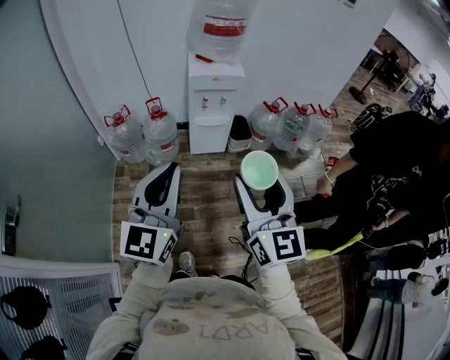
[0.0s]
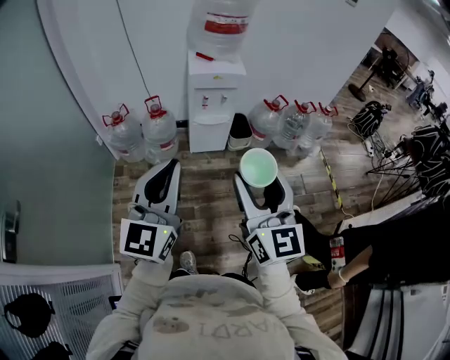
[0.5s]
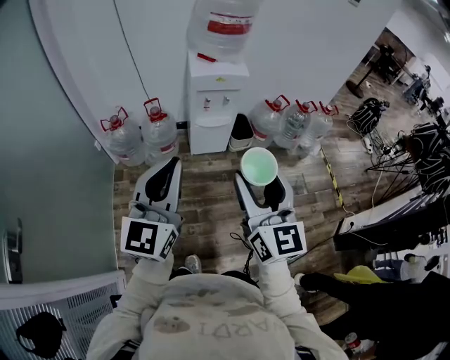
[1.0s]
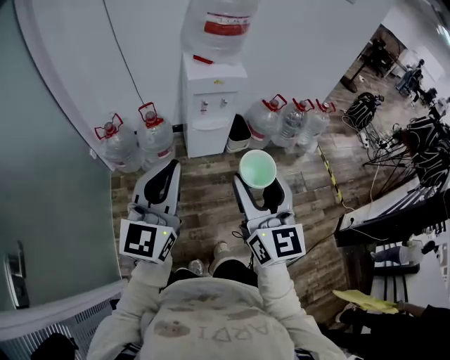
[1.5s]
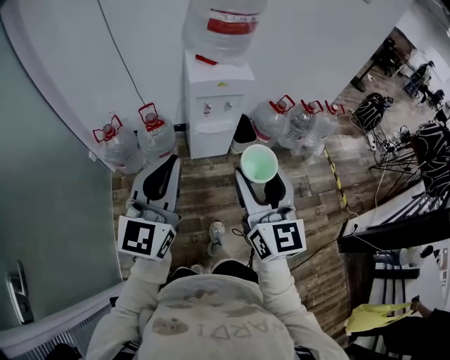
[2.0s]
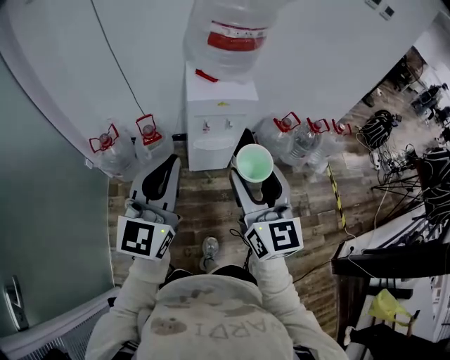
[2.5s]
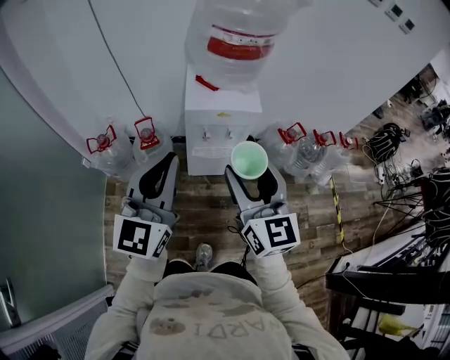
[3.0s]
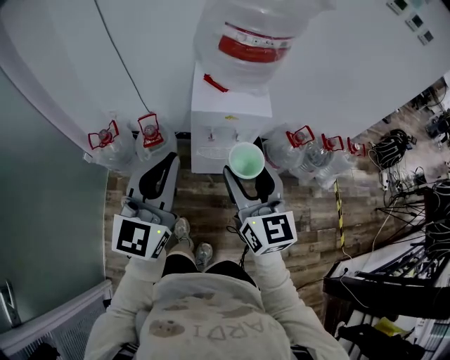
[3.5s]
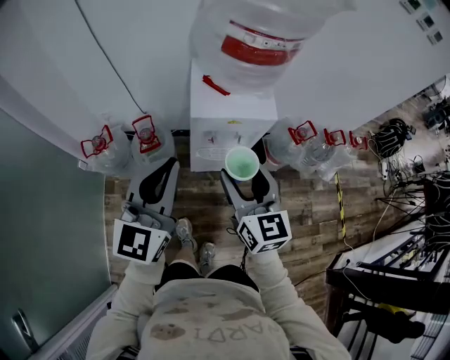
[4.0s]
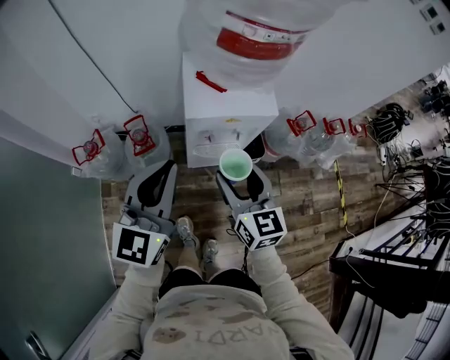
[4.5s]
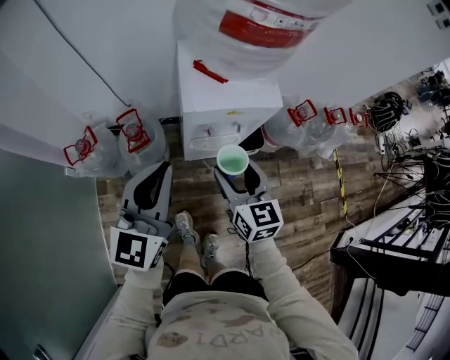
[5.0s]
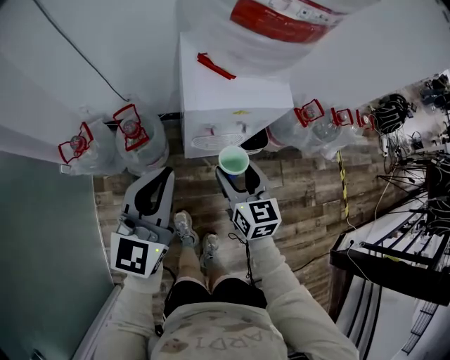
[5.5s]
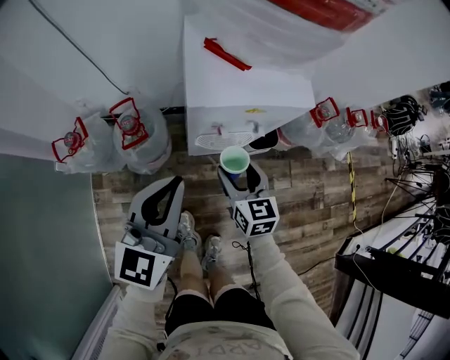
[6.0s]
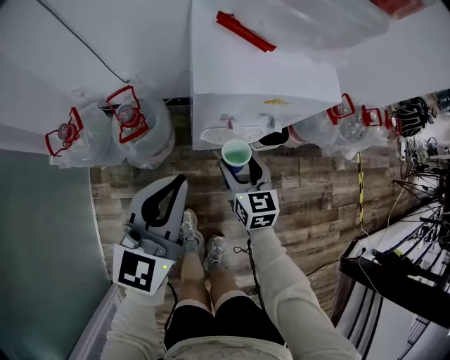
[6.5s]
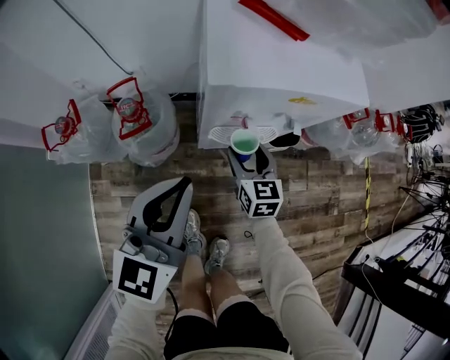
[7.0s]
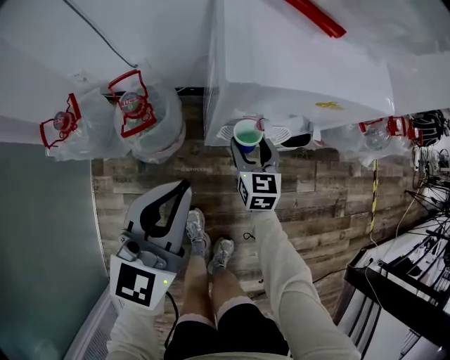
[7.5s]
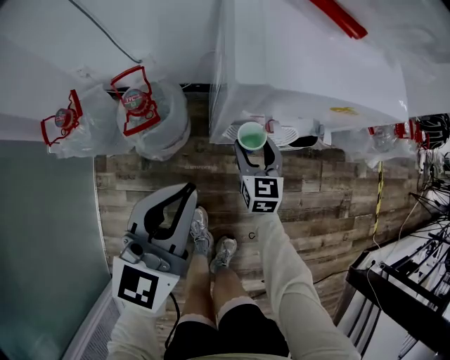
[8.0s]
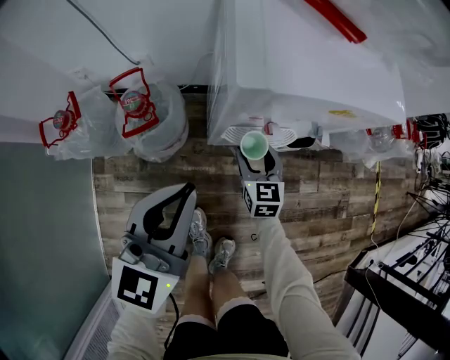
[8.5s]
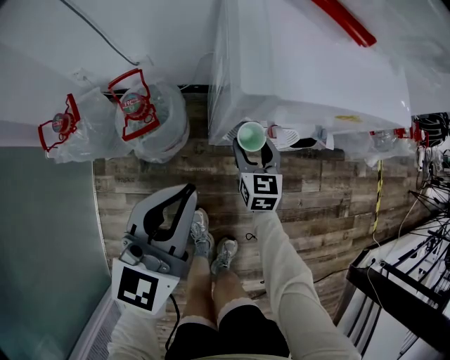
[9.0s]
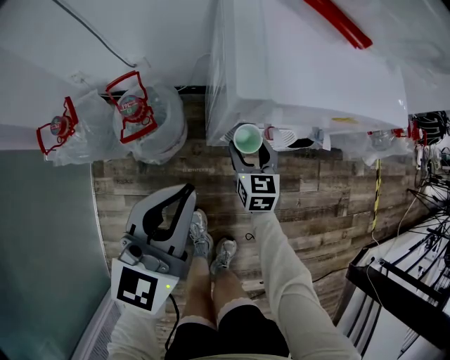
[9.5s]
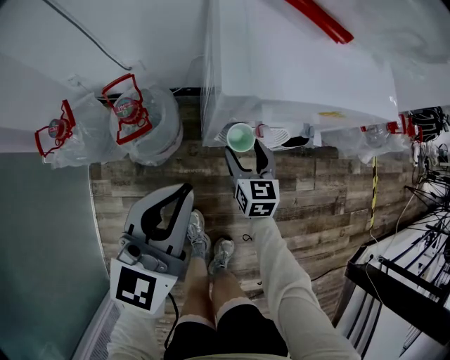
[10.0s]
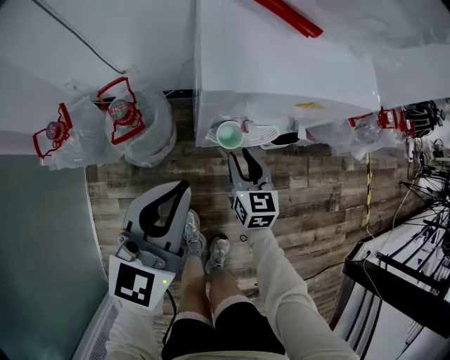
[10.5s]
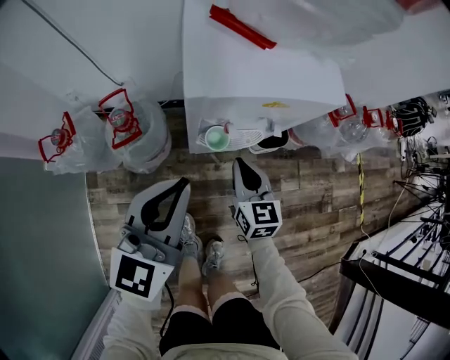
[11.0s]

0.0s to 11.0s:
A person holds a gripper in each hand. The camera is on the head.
0.0s to 2.0s: Both grippers travel together forward, some 20 cm.
2.0s to 3.5s: Both grippers move forward, some 25 cm.
3.5s to 5.5s: The grippers both shift downward and forward by roughly 25 cm. The right gripper turns by approximately 20 degrees.
5.5s to 7.5s: The right gripper goes some 30 cm downward and forward; the left gripper heads downward, covering roughly 20 cm.
7.5s to 9.0s: There are only small adjustments of the grippers.
9.0s to 11.0s: The left gripper heads upward, covering roughly 5 cm, while the right gripper heads upward, backward and to the right, covering about 15 cm, and closes.

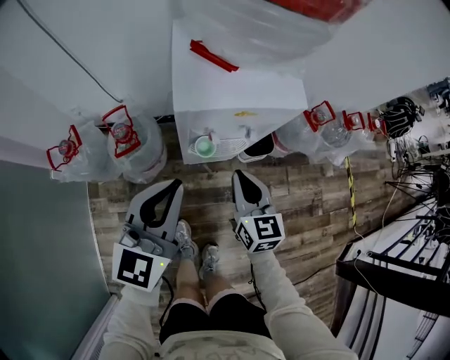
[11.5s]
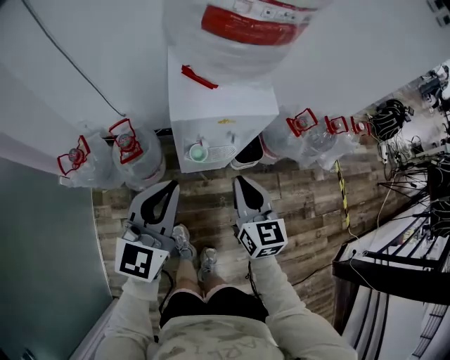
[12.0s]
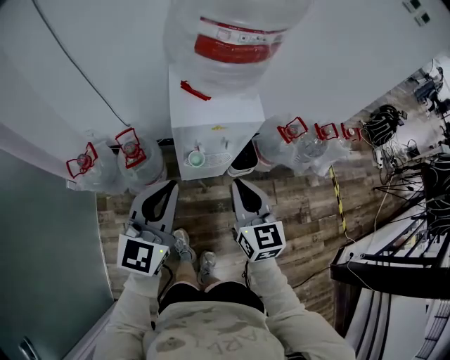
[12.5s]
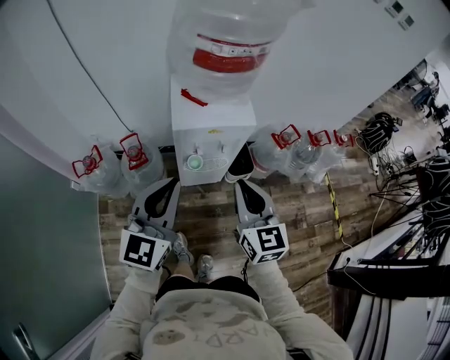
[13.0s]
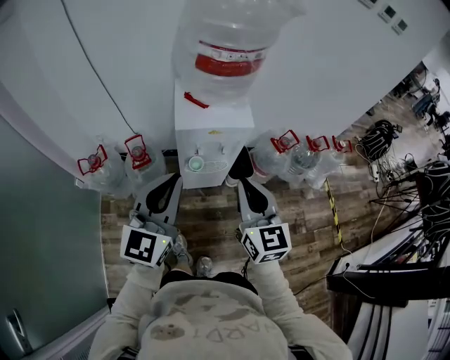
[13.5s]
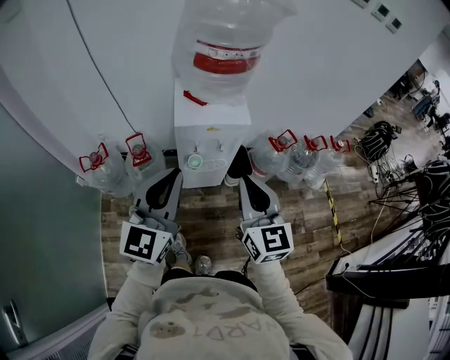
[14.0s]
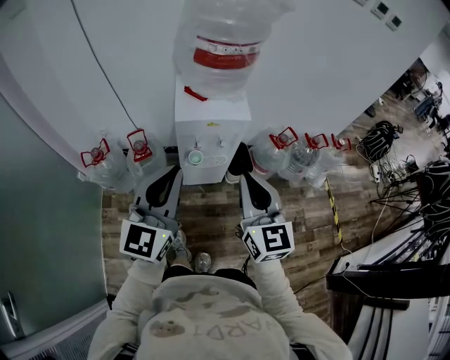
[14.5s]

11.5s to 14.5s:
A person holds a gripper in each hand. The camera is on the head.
11.5s to 13.0s: Both grippers travel together upward and backward, roughly 25 cm.
13.0s to 14.5s: The left gripper is displaced backward and upward by some 10 cm; the right gripper goes roughly 10 cm upward and backward.

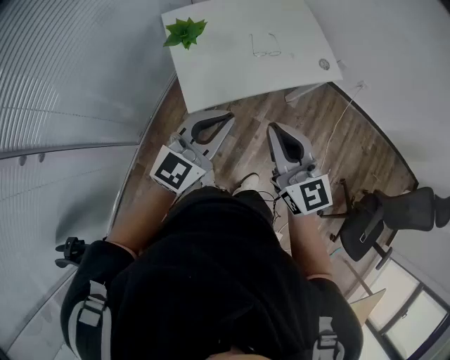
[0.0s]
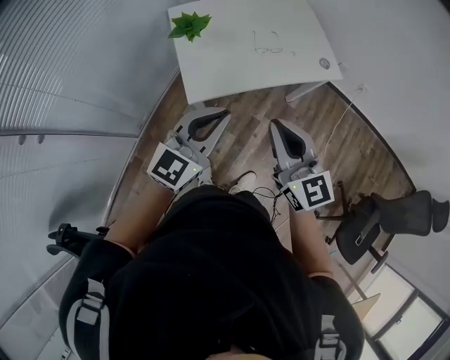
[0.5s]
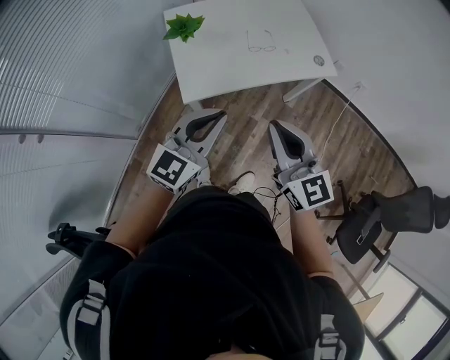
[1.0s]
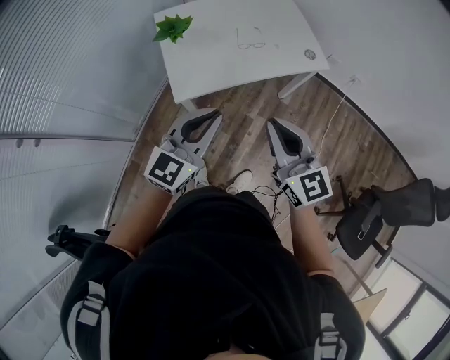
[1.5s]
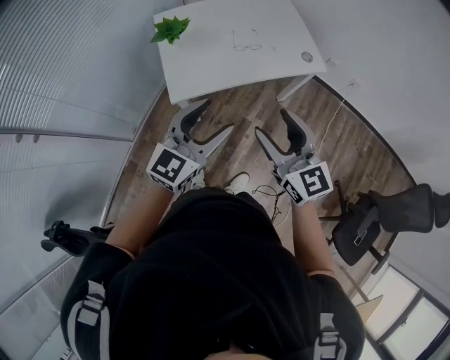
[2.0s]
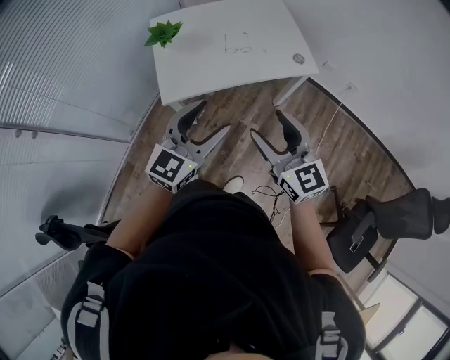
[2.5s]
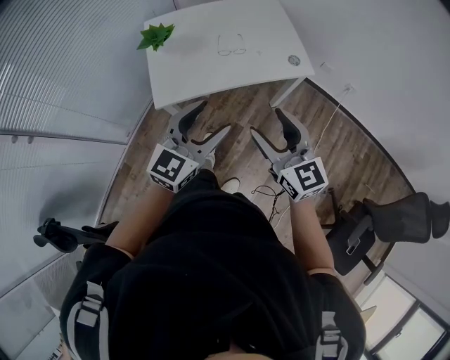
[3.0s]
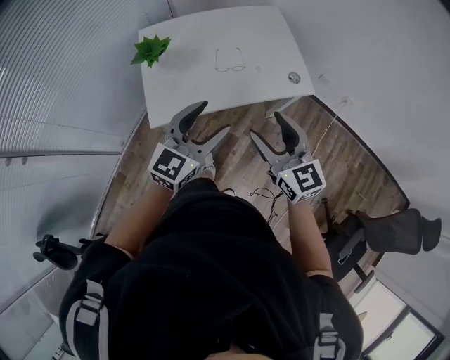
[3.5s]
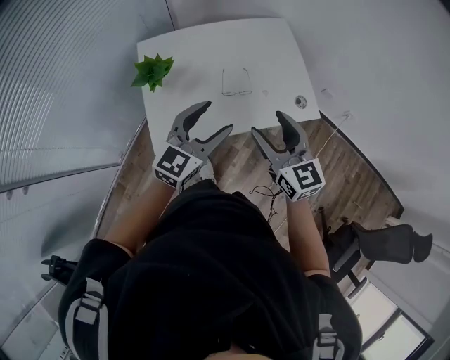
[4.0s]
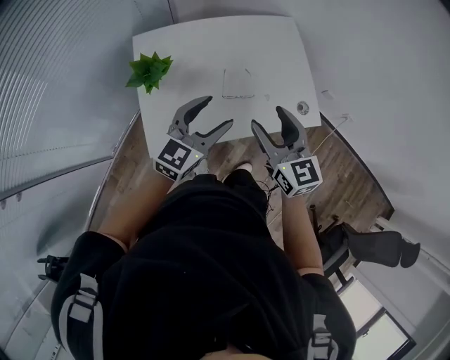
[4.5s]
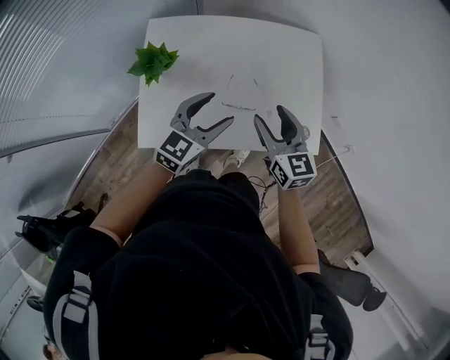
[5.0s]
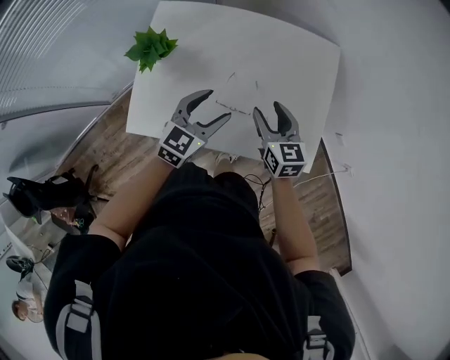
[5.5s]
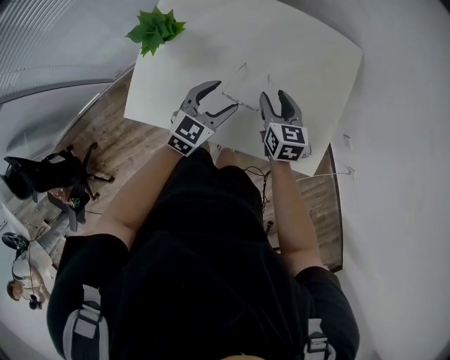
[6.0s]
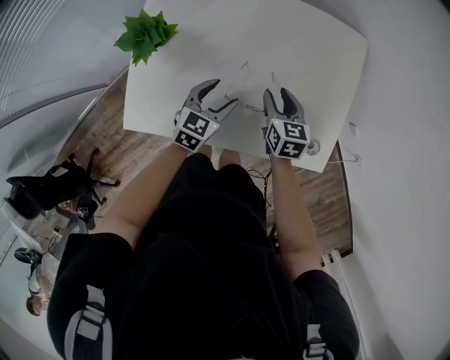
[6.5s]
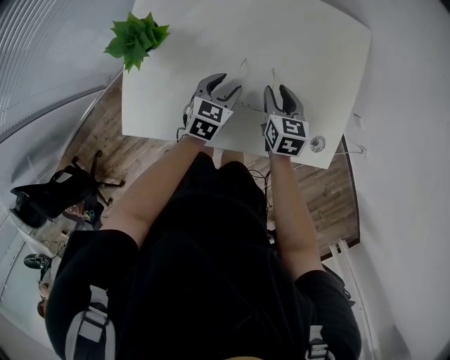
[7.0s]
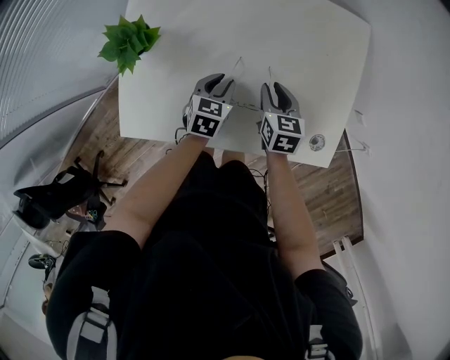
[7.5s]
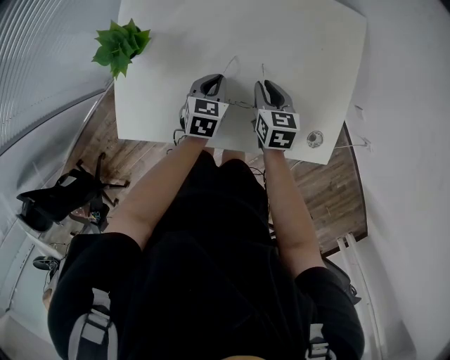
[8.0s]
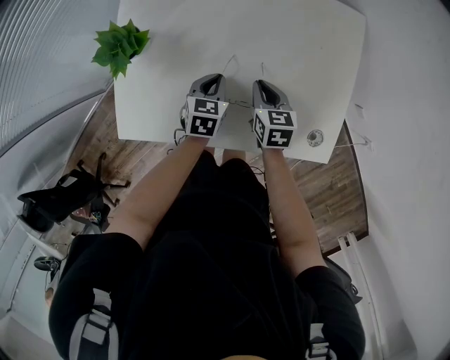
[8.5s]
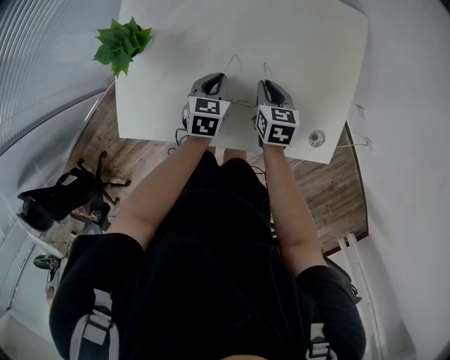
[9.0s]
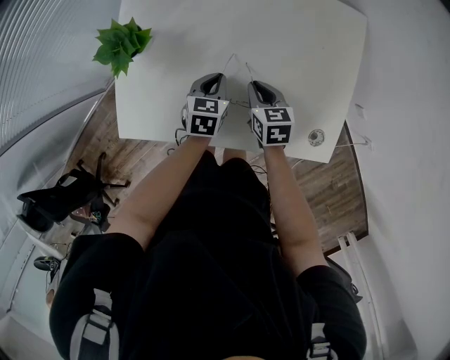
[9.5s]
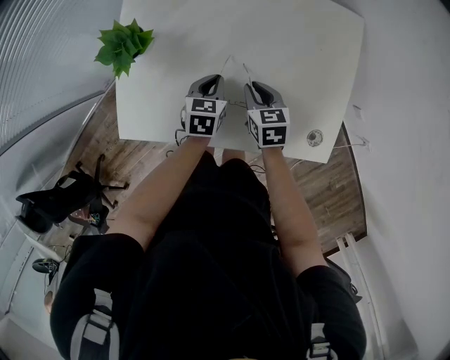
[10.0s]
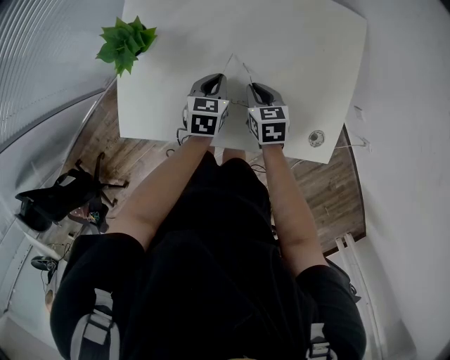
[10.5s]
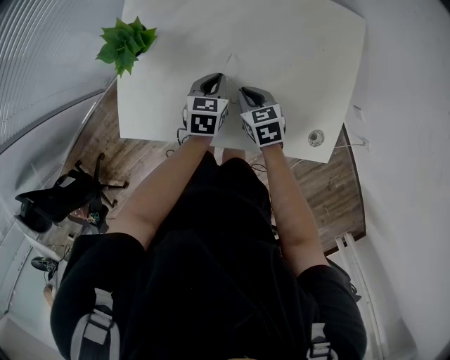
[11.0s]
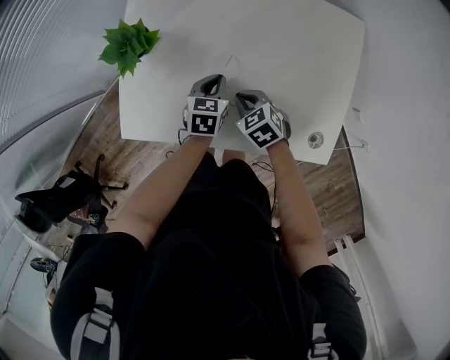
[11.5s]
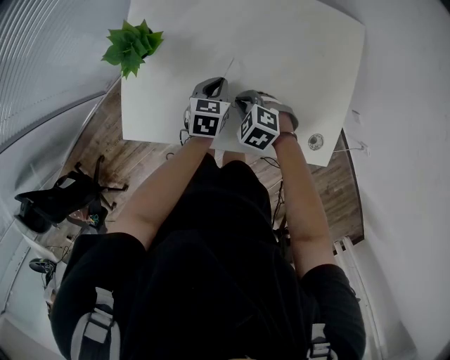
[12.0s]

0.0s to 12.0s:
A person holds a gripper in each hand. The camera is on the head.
0.0s to 2.0s: The left gripper is displaced to the right and backward by some 10 cm, and opens. Meanwhile the right gripper moves to the right, about 10 cm, and opens.
2.0s to 4.0s: Both grippers move forward, approximately 25 cm.
4.0s to 6.0s: Both grippers move downward and forward, roughly 30 cm. The left gripper swivels some 30 degrees. The right gripper turns by roughly 30 degrees.
6.0s to 8.0s: The left gripper shifts roughly 15 cm downward, turns by roughly 30 degrees, and closes its fingers. The right gripper travels downward by roughly 10 cm, and closes its fingers.
8.0s to 10.0s: The grippers move only a little.
10.0s to 12.0s: The right gripper shifts about 5 cm to the left, and rolls counterclockwise, seen from behind, by roughly 50 degrees.

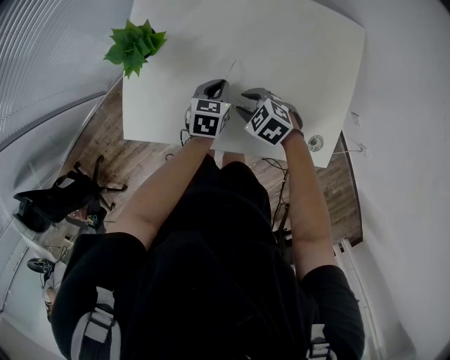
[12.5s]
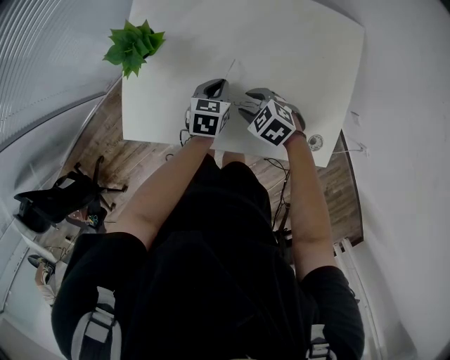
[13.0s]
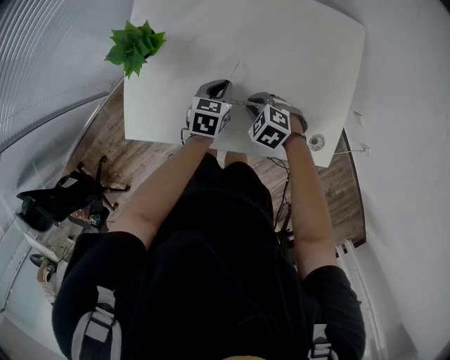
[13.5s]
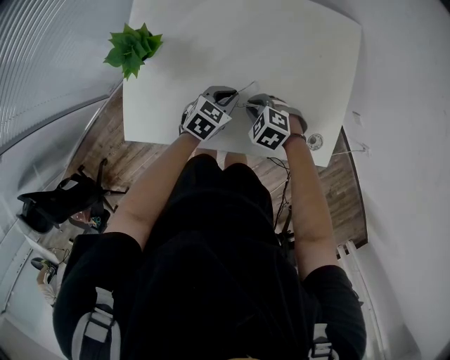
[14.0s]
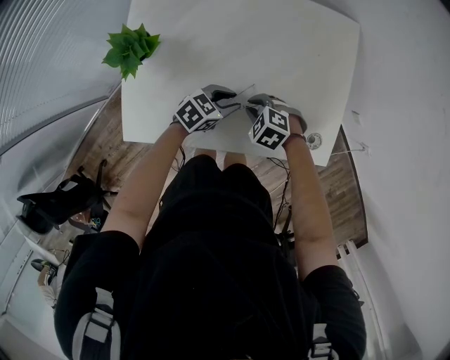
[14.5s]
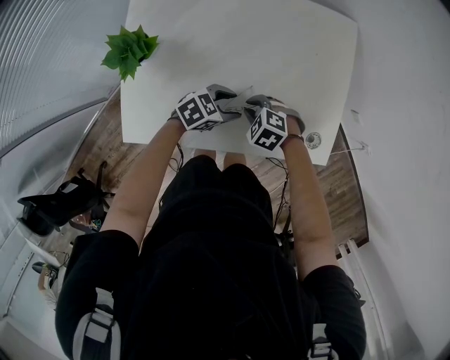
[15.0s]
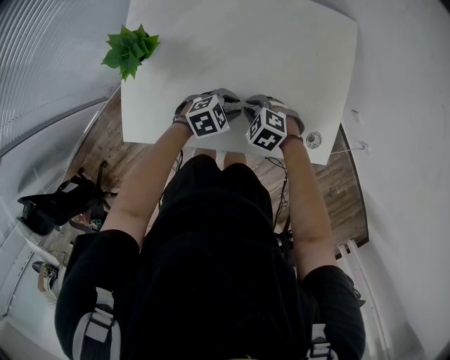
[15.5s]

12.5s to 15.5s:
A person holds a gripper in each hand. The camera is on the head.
12.5s to 14.0s: The left gripper changes place by some 5 cm, and changes its angle by some 30 degrees.
14.0s to 15.5s: The left gripper shifts by some 5 cm, turns by roughly 30 degrees, and opens, then closes once more.
